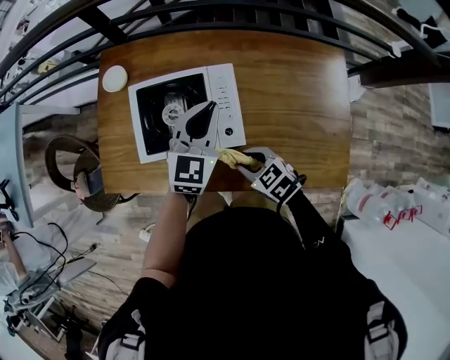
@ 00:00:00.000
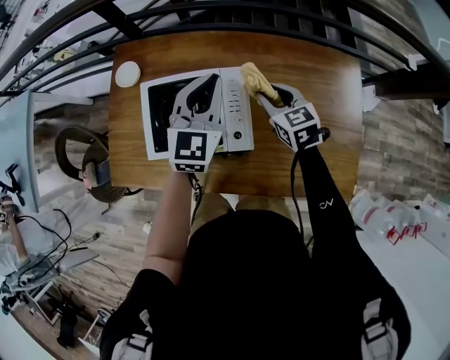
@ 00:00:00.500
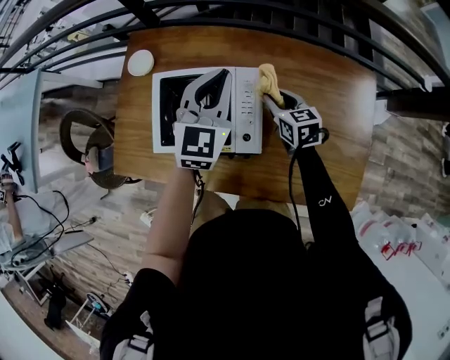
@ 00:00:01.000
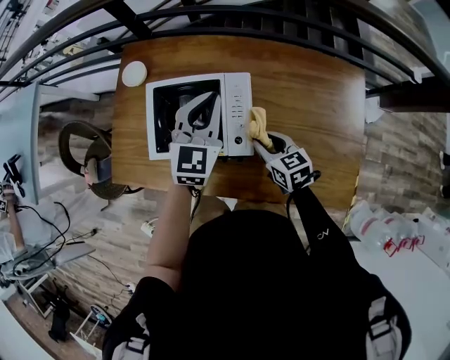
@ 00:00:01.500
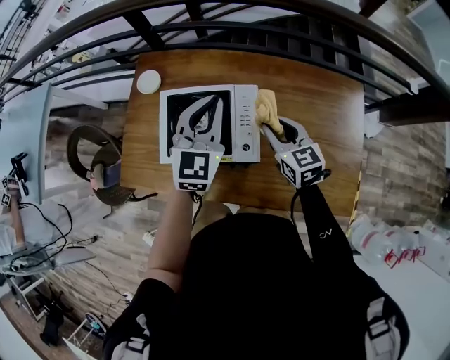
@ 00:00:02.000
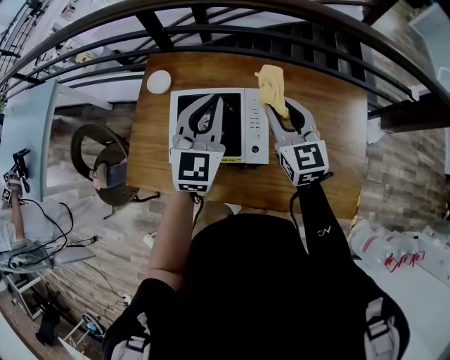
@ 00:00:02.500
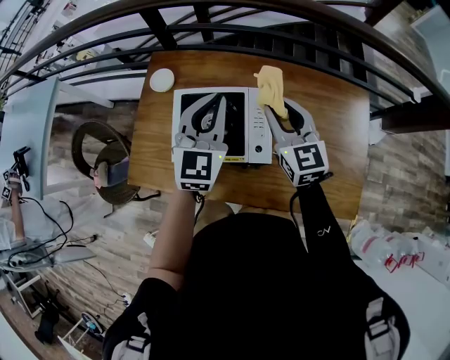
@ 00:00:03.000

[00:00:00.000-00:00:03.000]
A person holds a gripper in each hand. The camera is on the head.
00:00:00.000 to 00:00:01.500: The right gripper shifts roughly 10 cm forward and to the right, and swivels approximately 20 degrees.
00:00:01.500 to 00:00:03.000: The left gripper shifts some 10 cm upward and to the left. The right gripper travels upward and forward by roughly 20 cm, and swivels roughly 40 degrees.

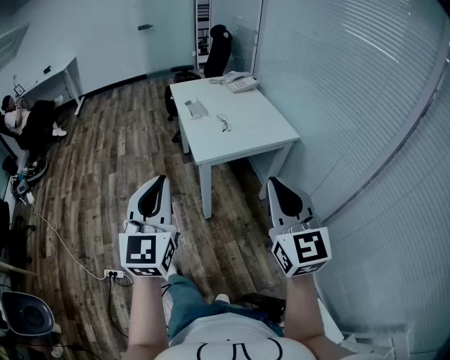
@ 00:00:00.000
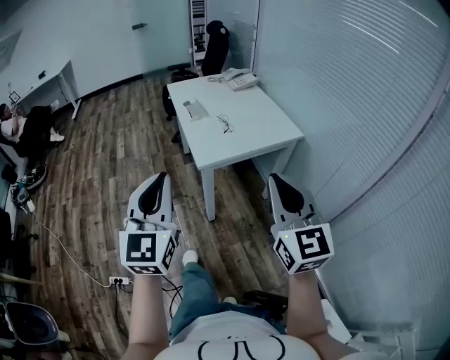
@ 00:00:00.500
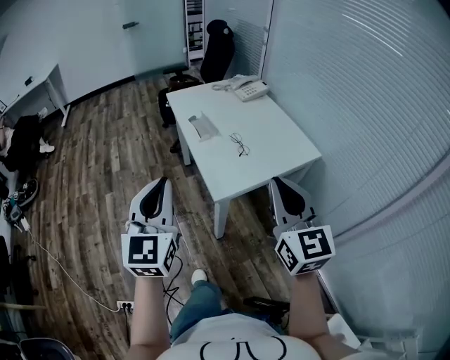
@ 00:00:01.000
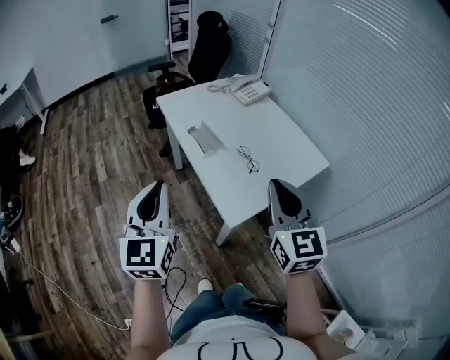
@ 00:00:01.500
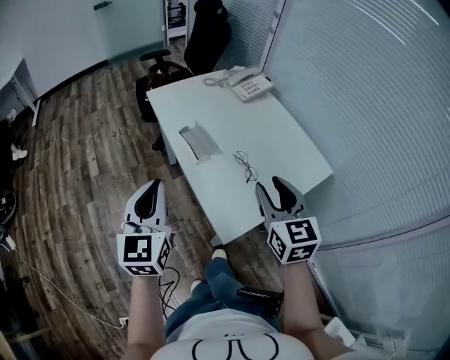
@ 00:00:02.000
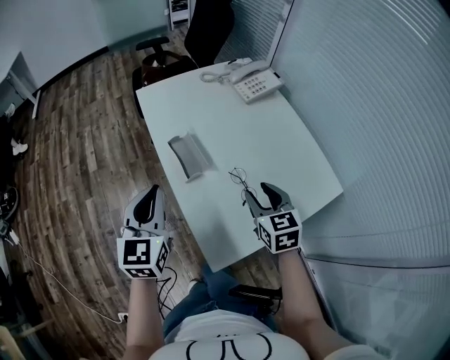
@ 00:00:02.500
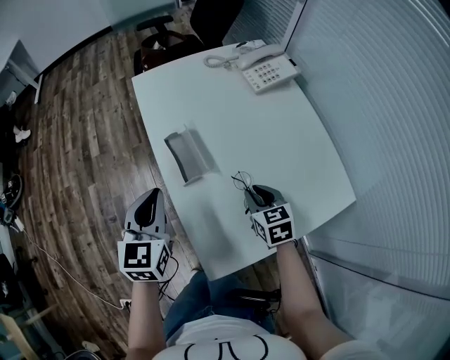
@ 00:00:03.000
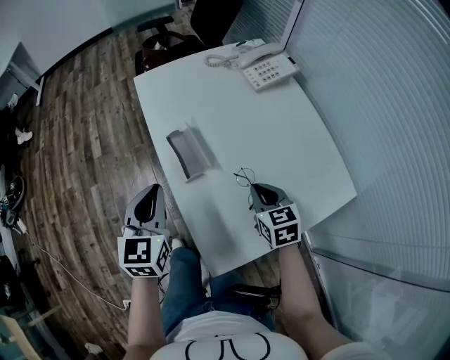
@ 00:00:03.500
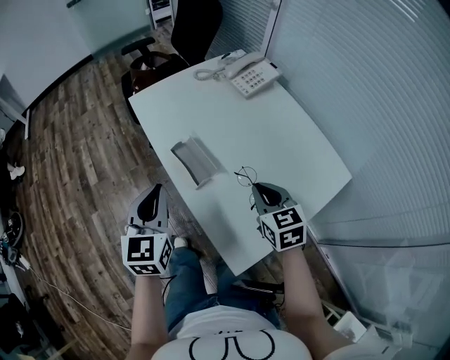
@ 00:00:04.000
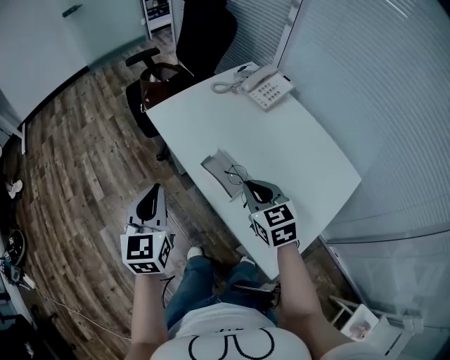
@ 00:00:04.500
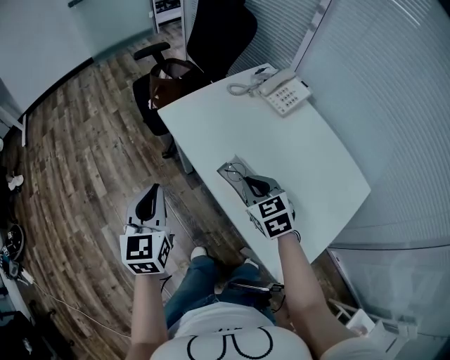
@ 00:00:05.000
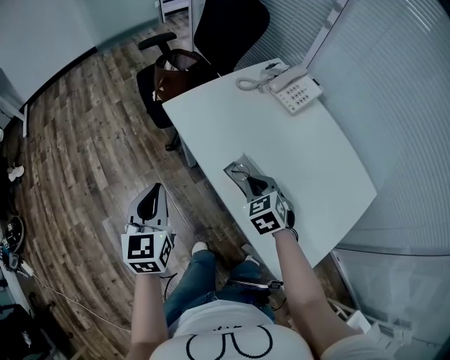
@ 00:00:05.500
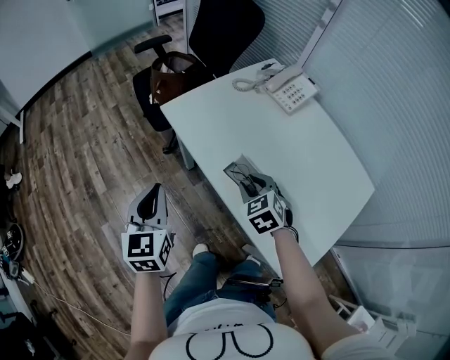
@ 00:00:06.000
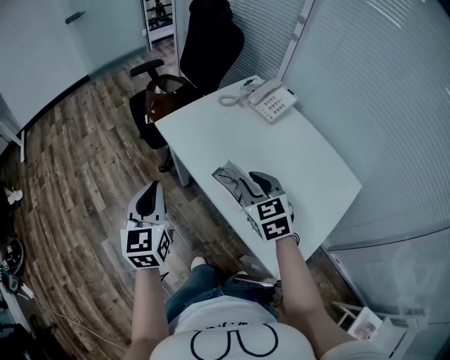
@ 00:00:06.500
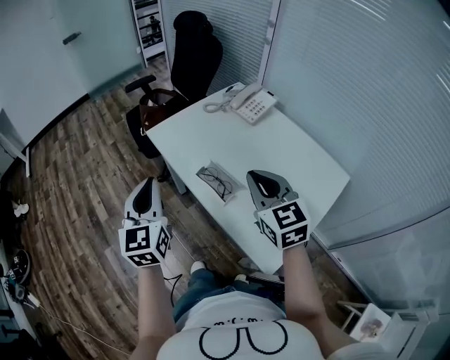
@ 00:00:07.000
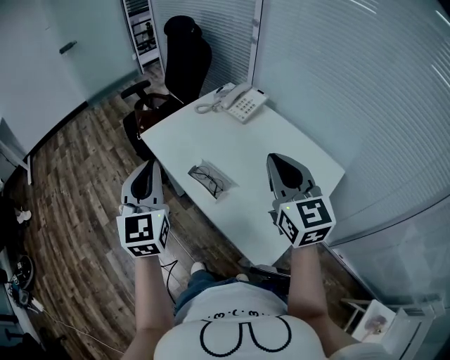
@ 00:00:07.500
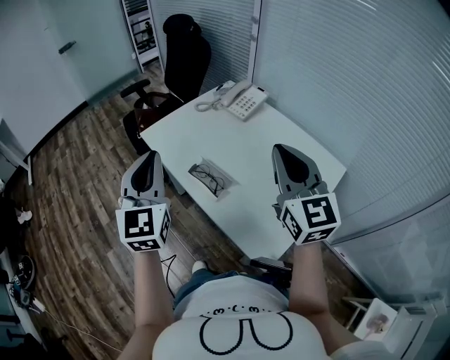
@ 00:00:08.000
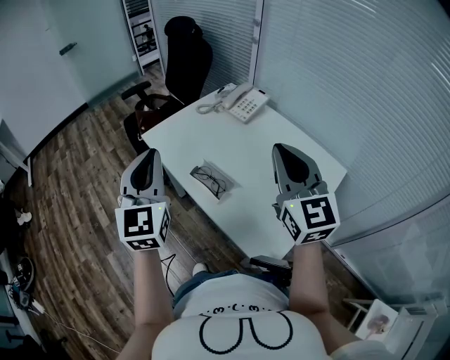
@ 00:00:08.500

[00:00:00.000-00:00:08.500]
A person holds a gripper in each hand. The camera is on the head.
00:00:00.000 to 00:00:02.000: Both grippers are carried forward, some 50 cm. The right gripper rotates roughly 20 degrees, and opens up.
00:00:02.000 to 00:00:04.000: The two grippers go some 20 cm forward and downward. The right gripper closes.
00:00:04.000 to 00:00:06.500: Both grippers travel together to the left and forward, roughly 20 cm. The right gripper opens.
00:00:06.500 to 00:00:08.500: The right gripper travels upward, to the right and backward by roughly 25 cm, points its fingers approximately 30 degrees further upward, and closes up. Meanwhile the left gripper travels upward and to the right by roughly 20 cm, and changes its angle by some 20 degrees.

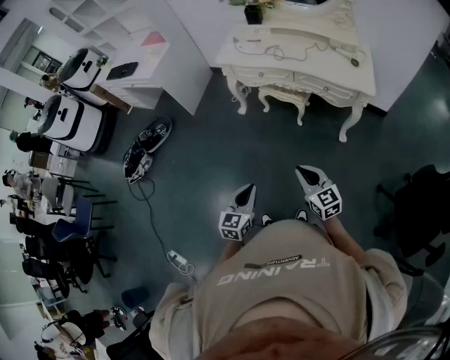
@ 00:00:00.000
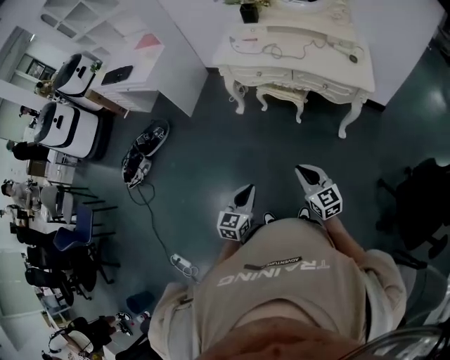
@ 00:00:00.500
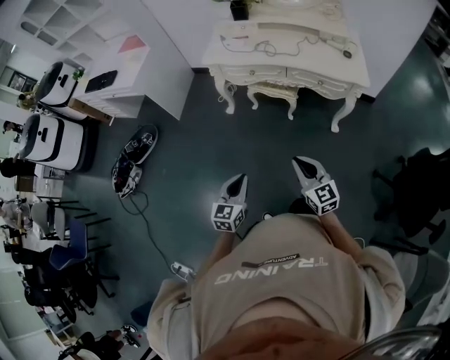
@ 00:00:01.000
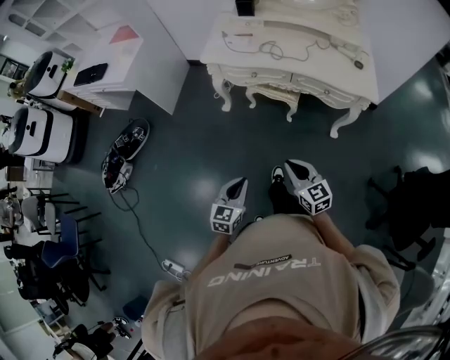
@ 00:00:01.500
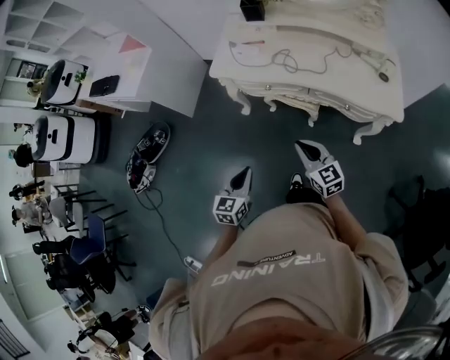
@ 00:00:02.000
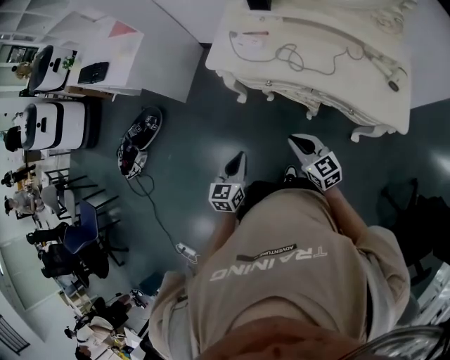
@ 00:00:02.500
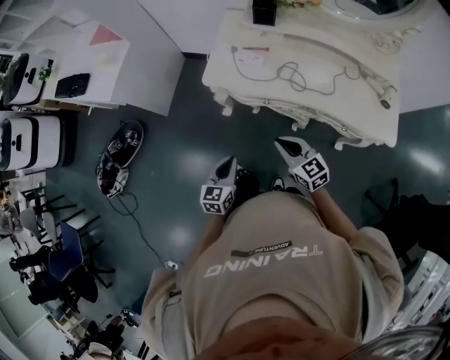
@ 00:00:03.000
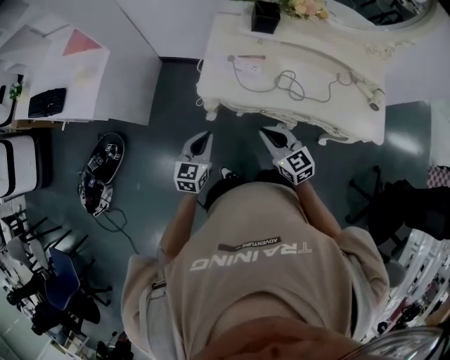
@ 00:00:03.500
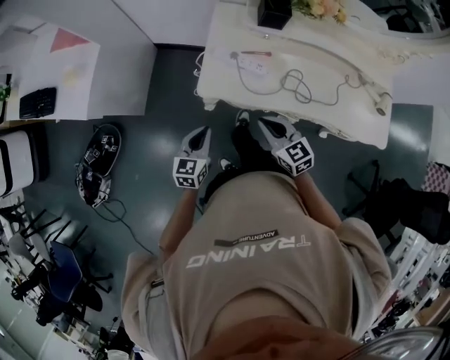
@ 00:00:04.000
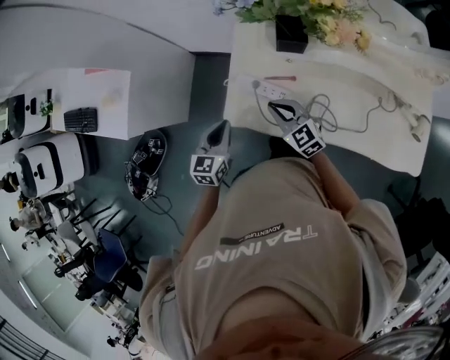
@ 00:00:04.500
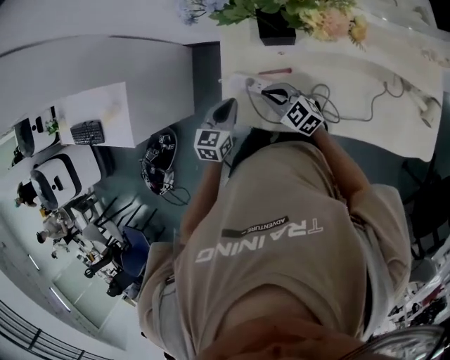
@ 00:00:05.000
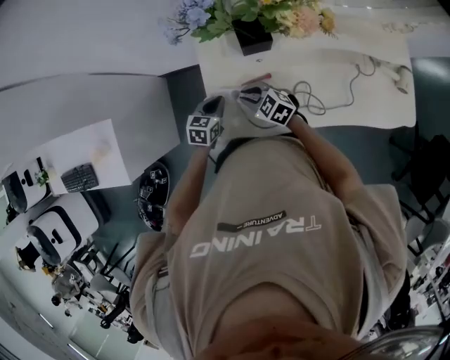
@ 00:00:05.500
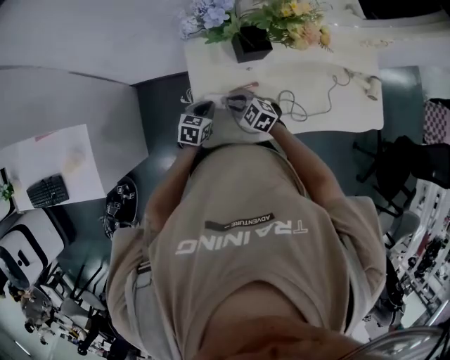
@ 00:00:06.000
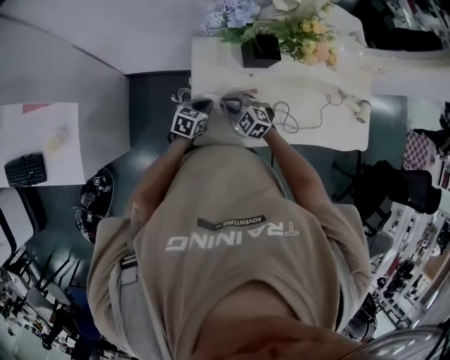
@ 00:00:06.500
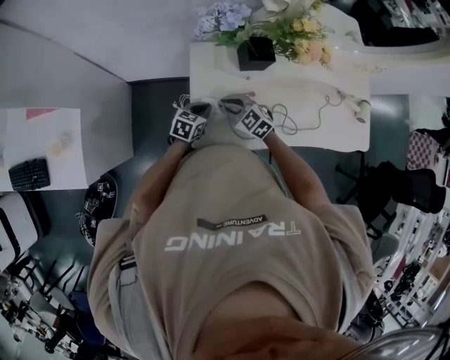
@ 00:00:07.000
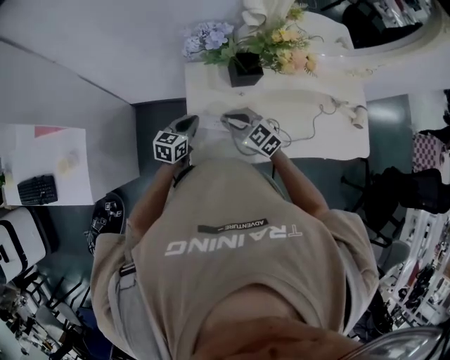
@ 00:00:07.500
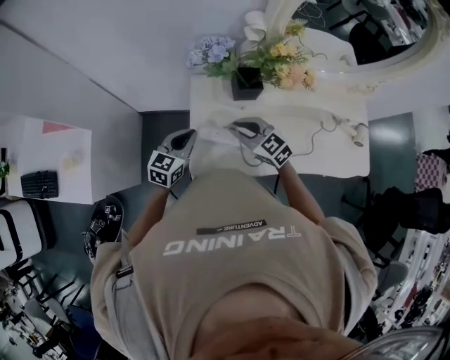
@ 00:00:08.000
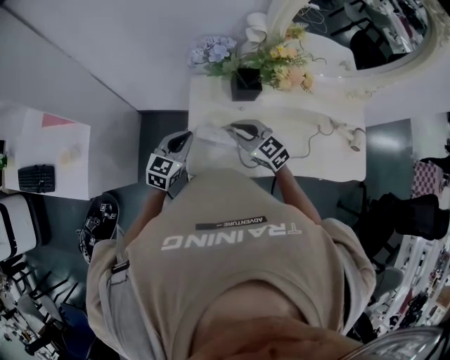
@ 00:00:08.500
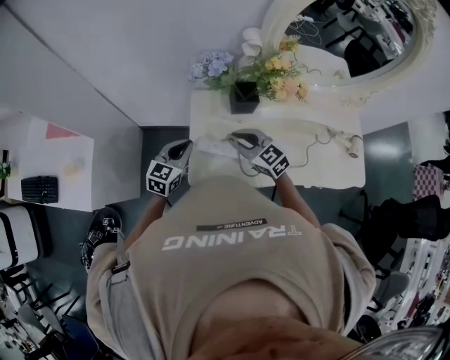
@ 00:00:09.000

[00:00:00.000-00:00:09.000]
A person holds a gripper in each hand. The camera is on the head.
00:00:00.000 to 00:00:02.000: Both grippers travel together forward, approximately 35 cm.
00:00:02.000 to 00:00:04.500: The pair of grippers is taken forward, approximately 60 cm.
00:00:04.500 to 00:00:07.000: The left gripper travels forward and downward by roughly 20 cm, and changes its angle by approximately 40 degrees. The right gripper travels forward, to the left and downward by some 10 cm.
00:00:07.000 to 00:00:09.000: The two grippers go some 15 cm upward. The left gripper swivels roughly 20 degrees.

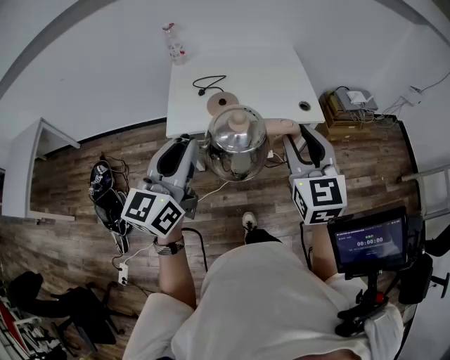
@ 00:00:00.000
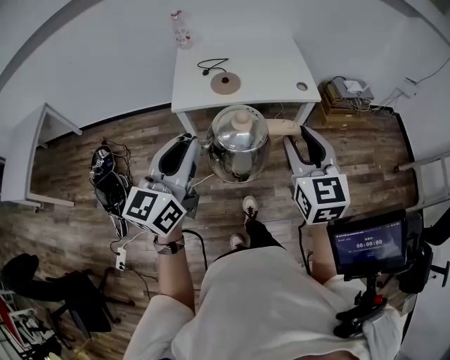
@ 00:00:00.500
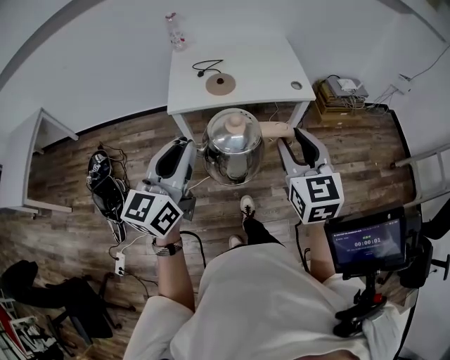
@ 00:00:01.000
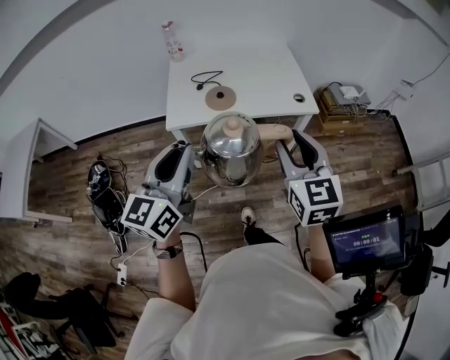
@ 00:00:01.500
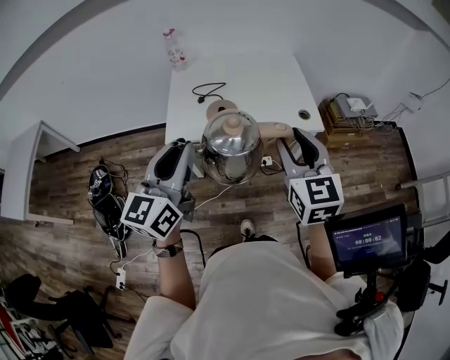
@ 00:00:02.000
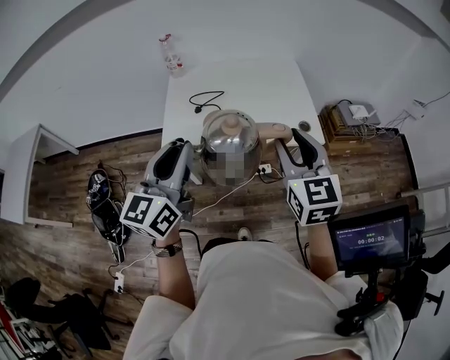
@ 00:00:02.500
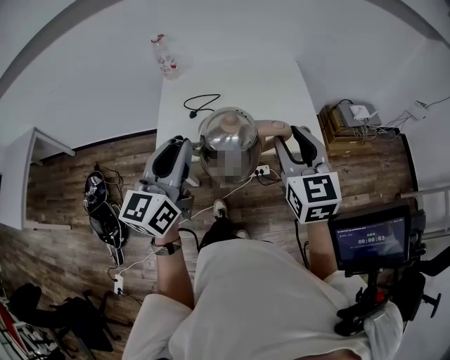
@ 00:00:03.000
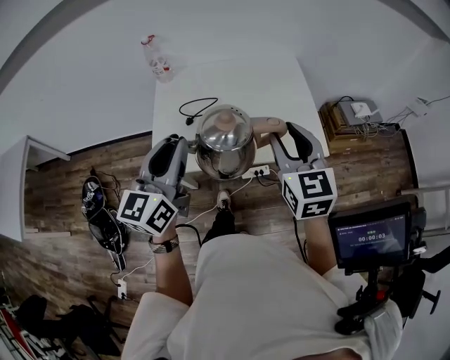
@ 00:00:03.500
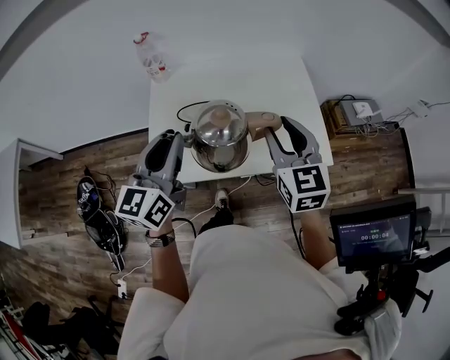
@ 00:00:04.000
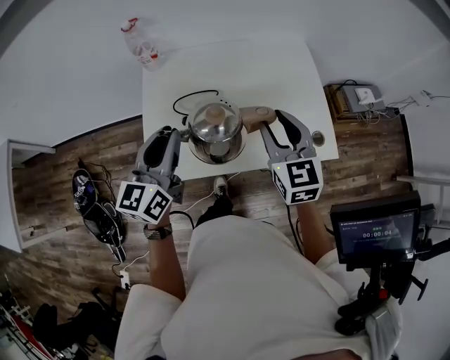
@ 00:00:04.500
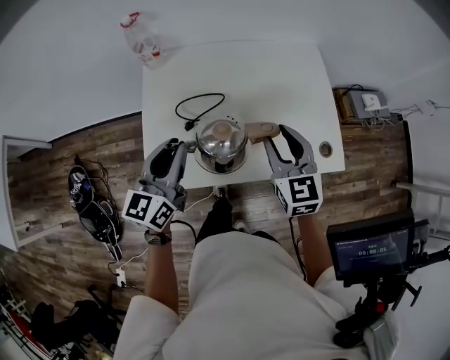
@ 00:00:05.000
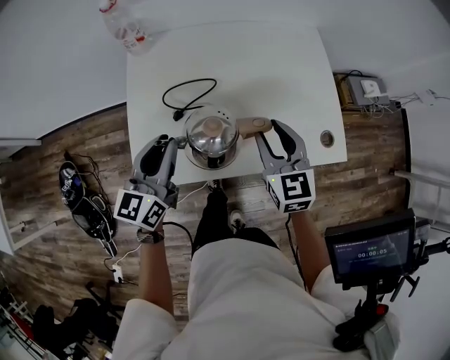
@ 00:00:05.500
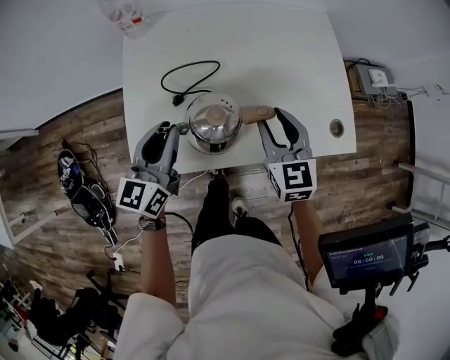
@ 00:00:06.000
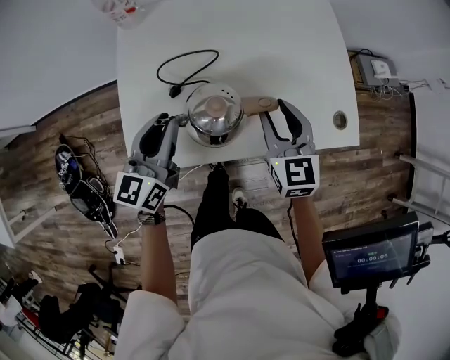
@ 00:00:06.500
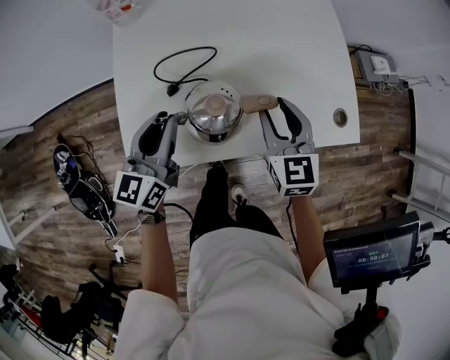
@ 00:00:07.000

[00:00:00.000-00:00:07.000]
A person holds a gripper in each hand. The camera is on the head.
00:00:00.000 to 00:00:02.000: The left gripper reaches roughly 15 cm backward, then returns, while the right gripper moves about 15 cm backward and comes back.
00:00:02.000 to 00:00:03.500: Both grippers move forward, some 20 cm.
00:00:03.500 to 00:00:05.000: The grippers both shift forward, downward and to the left by some 20 cm.
00:00:05.000 to 00:00:07.000: The two grippers go roughly 10 cm downward.
